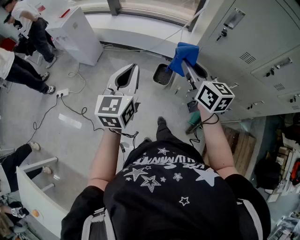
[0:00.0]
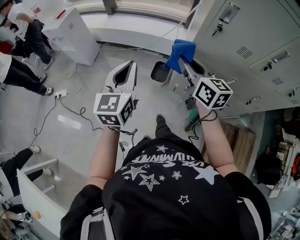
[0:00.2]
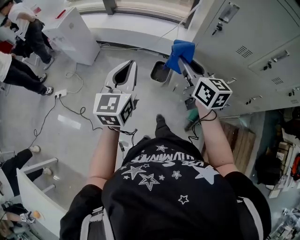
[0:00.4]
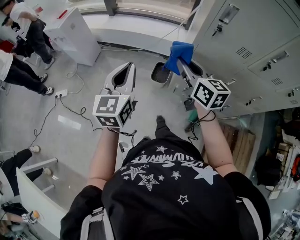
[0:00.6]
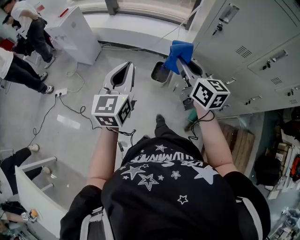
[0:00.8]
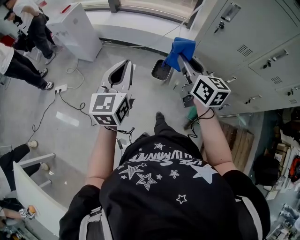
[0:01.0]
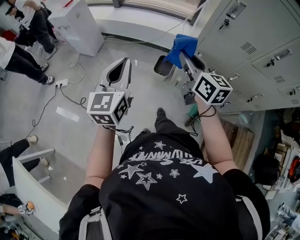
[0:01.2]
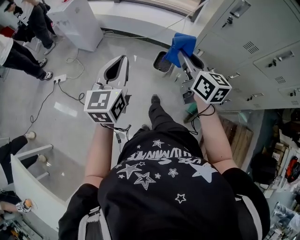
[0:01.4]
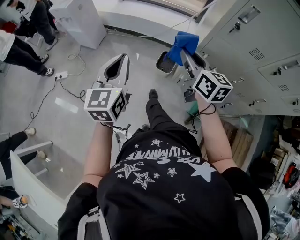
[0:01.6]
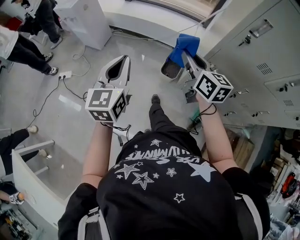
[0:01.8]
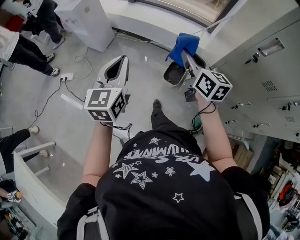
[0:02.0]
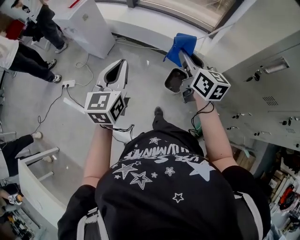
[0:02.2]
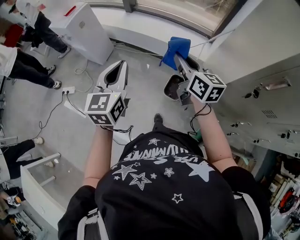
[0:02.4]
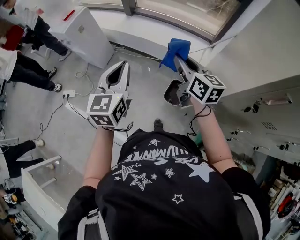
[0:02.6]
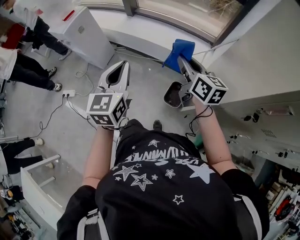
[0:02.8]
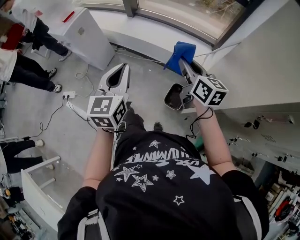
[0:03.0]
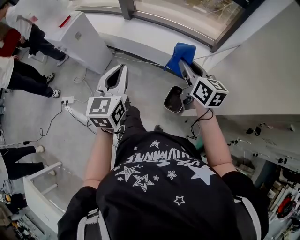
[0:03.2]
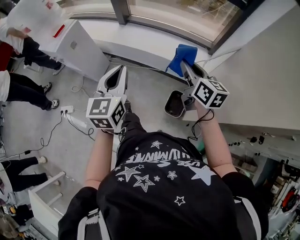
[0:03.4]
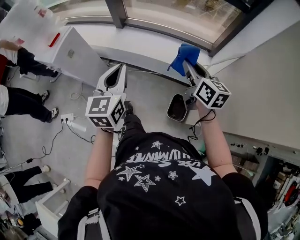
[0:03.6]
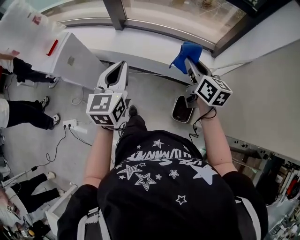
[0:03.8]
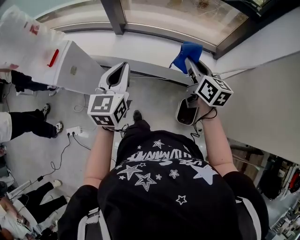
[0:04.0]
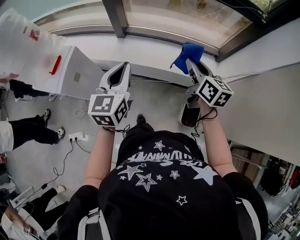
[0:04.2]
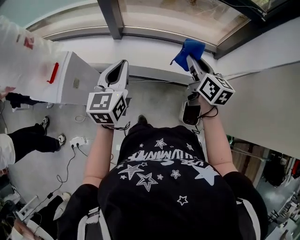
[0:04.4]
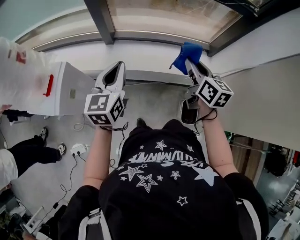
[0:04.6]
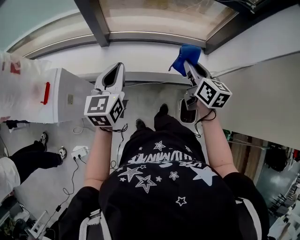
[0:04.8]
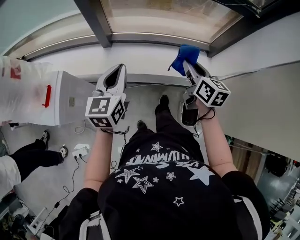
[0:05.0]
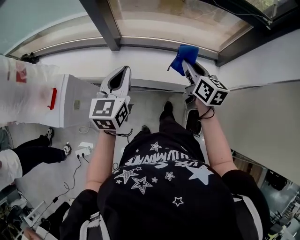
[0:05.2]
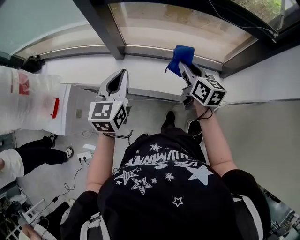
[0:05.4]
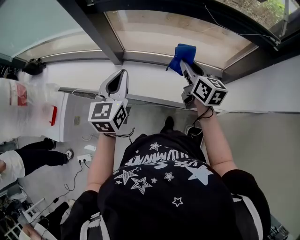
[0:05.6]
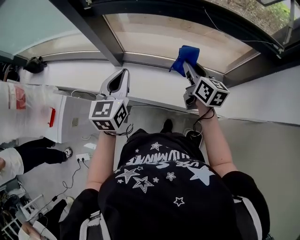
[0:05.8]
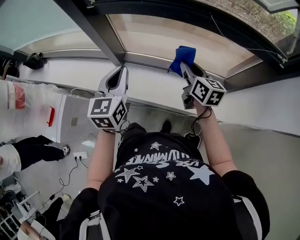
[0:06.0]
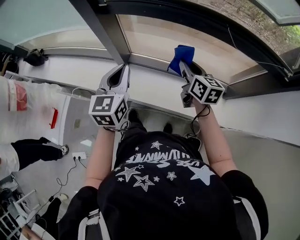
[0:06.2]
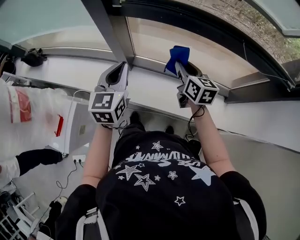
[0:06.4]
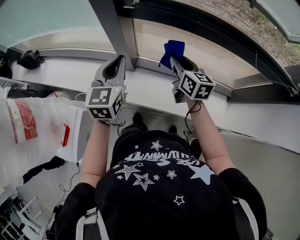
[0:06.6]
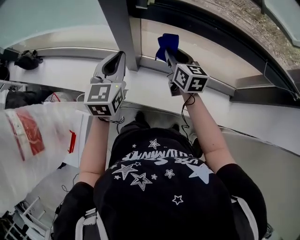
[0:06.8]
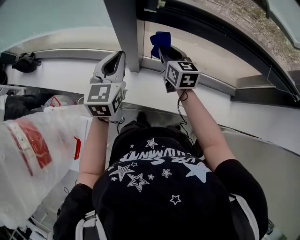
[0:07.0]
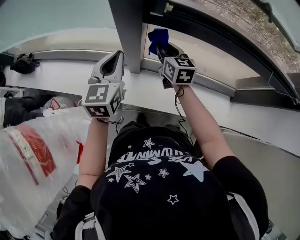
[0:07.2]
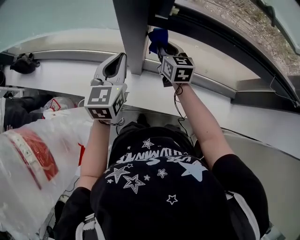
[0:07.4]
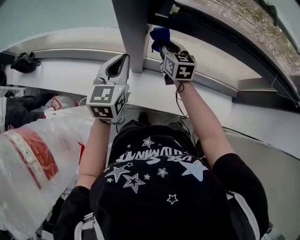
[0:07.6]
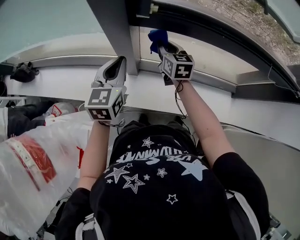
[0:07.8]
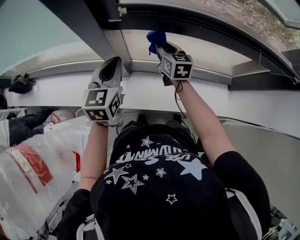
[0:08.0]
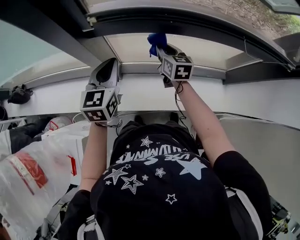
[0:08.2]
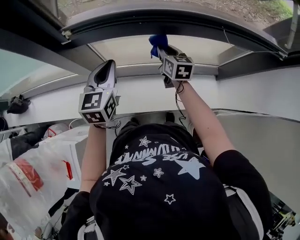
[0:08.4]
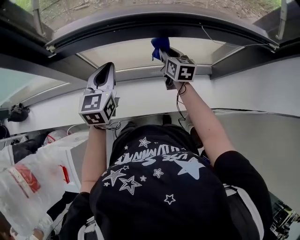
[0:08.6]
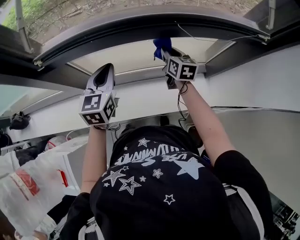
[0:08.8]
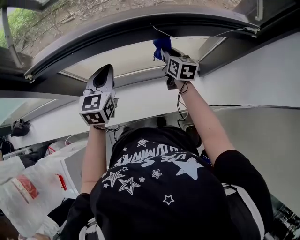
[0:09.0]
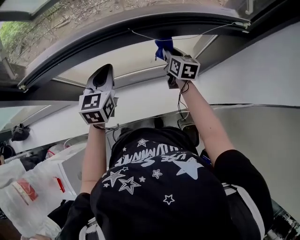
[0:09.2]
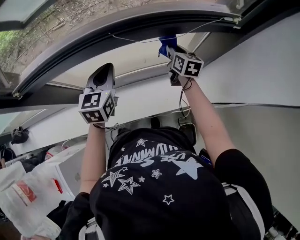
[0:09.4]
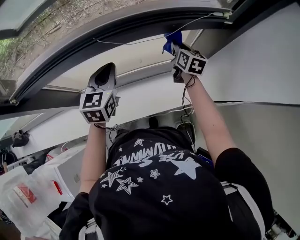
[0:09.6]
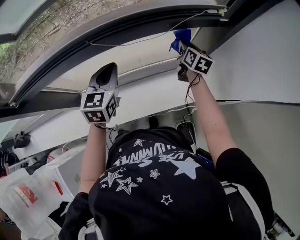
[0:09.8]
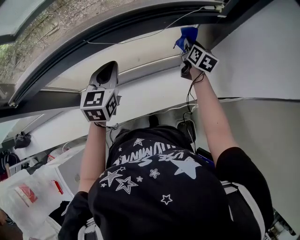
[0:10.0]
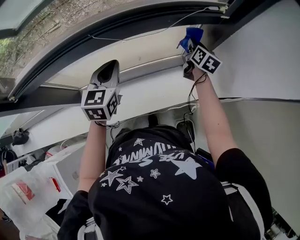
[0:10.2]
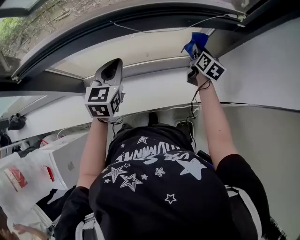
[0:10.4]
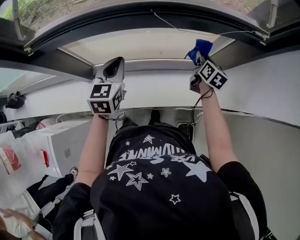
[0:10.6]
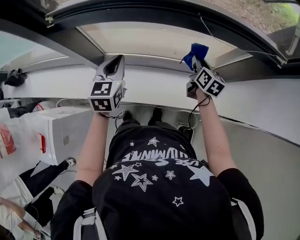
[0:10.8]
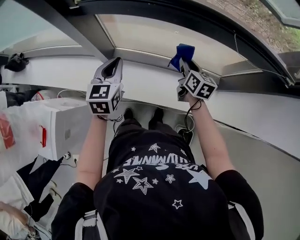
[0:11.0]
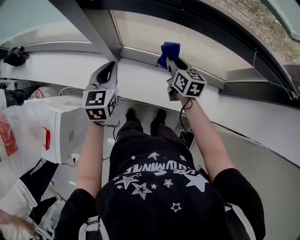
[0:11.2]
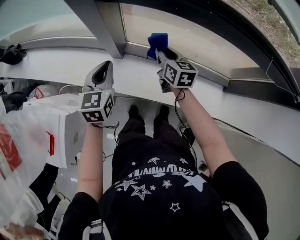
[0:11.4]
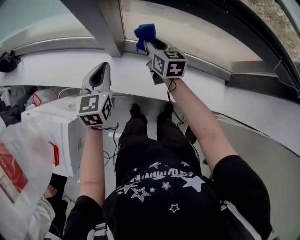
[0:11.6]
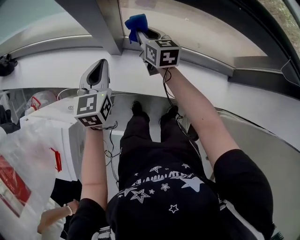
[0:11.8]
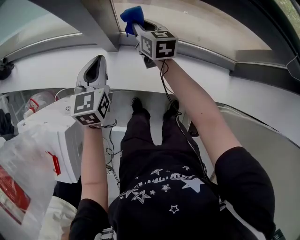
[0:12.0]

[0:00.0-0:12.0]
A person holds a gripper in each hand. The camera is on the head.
0:00.0 to 0:01.6: The left gripper travels to the left by roughly 5 cm.
0:01.6 to 0:03.0: The grippers both shift forward by about 30 cm.
0:03.0 to 0:04.4: The two grippers go roughly 35 cm forward and to the left. The right gripper rotates approximately 20 degrees.
0:04.4 to 0:06.0: The two grippers go some 25 cm forward.
0:06.0 to 0:07.6: The two grippers go roughly 35 cm to the left and forward.
0:07.6 to 0:09.0: The grippers both shift to the right by roughly 40 cm. The right gripper turns by some 30 degrees.
0:09.0 to 0:10.4: The left gripper shifts approximately 15 cm to the right. The right gripper moves to the right, about 25 cm, and swivels approximately 20 degrees.
0:10.4 to 0:12.0: The pair of grippers is taken approximately 50 cm. The right gripper rotates approximately 50 degrees. The left gripper swivels approximately 30 degrees.

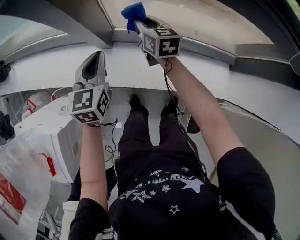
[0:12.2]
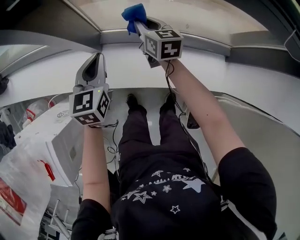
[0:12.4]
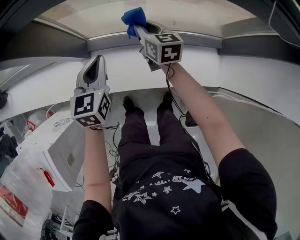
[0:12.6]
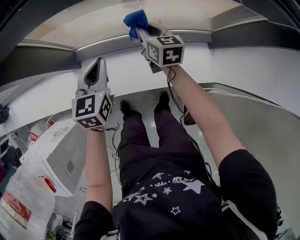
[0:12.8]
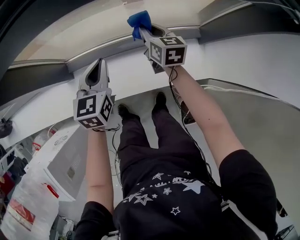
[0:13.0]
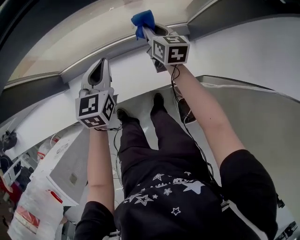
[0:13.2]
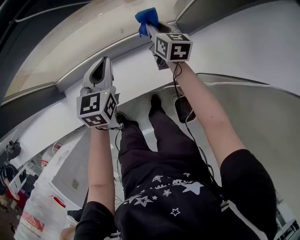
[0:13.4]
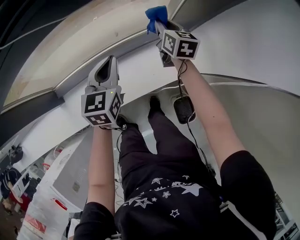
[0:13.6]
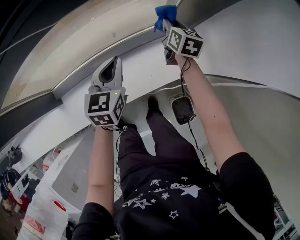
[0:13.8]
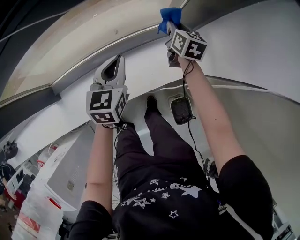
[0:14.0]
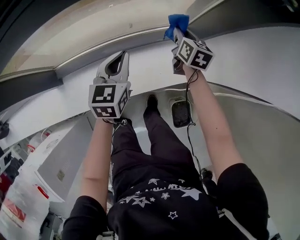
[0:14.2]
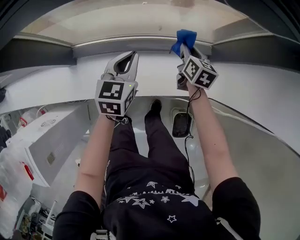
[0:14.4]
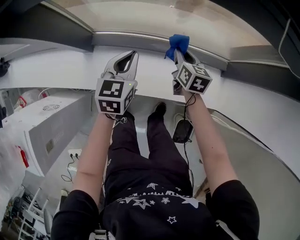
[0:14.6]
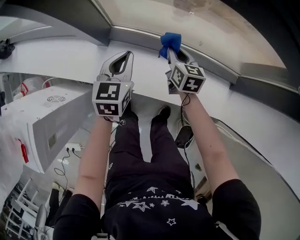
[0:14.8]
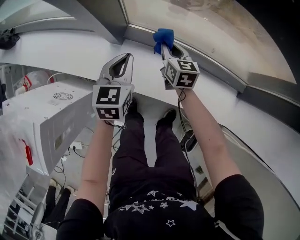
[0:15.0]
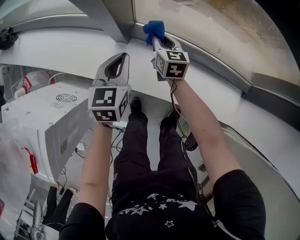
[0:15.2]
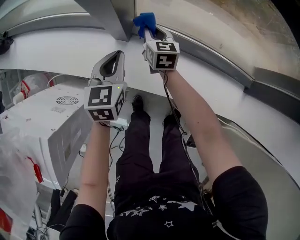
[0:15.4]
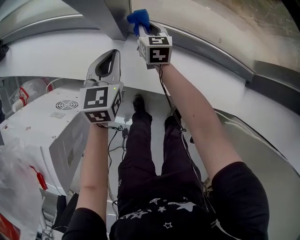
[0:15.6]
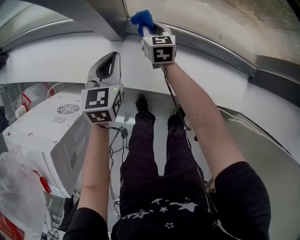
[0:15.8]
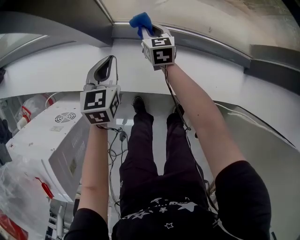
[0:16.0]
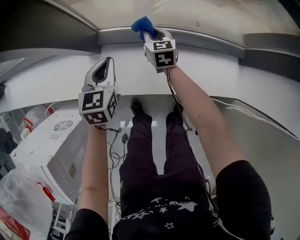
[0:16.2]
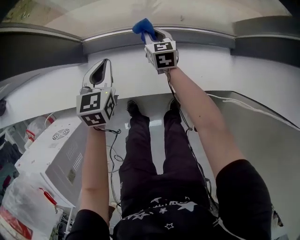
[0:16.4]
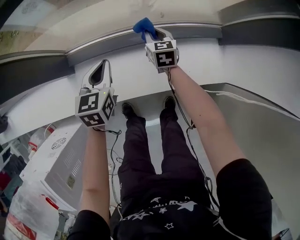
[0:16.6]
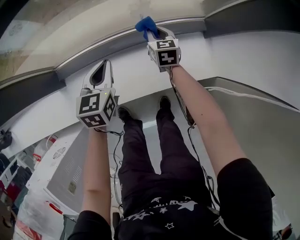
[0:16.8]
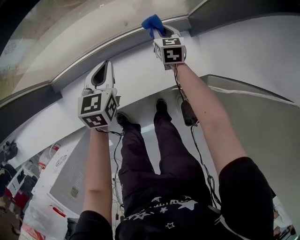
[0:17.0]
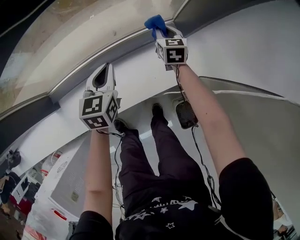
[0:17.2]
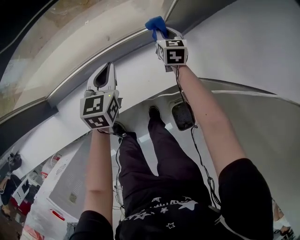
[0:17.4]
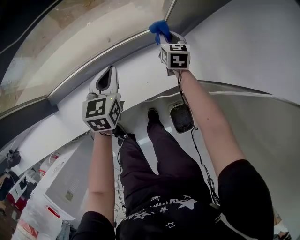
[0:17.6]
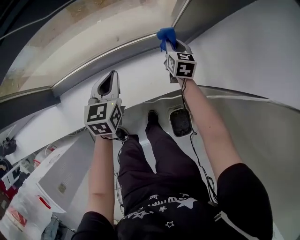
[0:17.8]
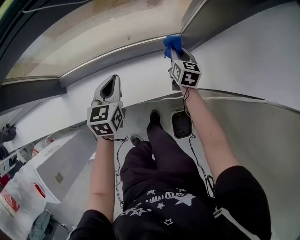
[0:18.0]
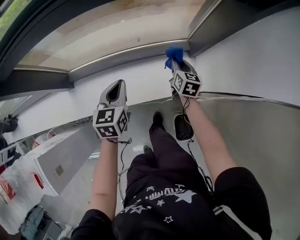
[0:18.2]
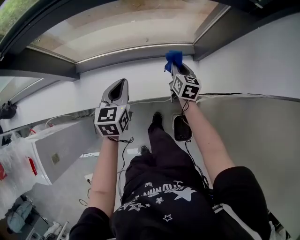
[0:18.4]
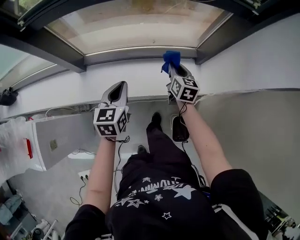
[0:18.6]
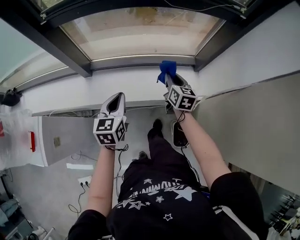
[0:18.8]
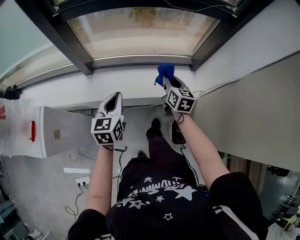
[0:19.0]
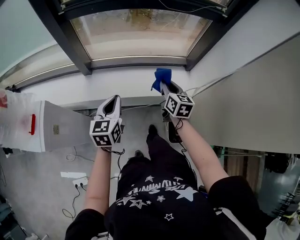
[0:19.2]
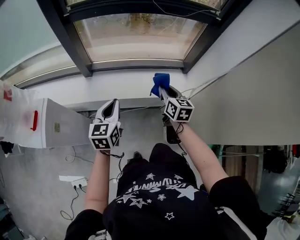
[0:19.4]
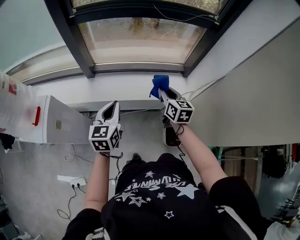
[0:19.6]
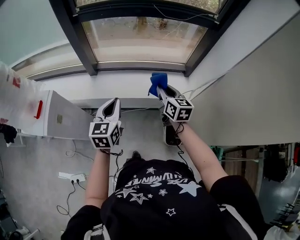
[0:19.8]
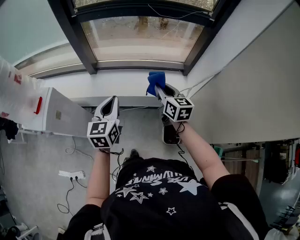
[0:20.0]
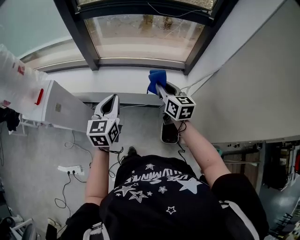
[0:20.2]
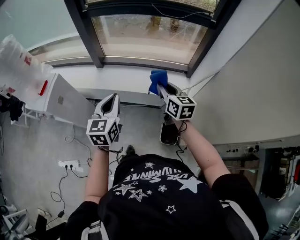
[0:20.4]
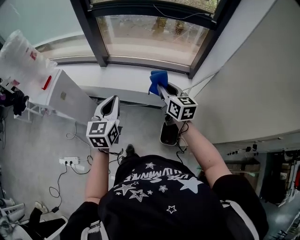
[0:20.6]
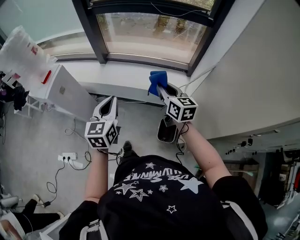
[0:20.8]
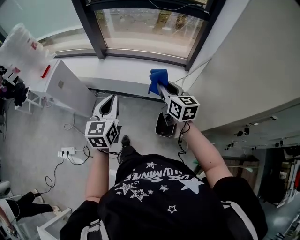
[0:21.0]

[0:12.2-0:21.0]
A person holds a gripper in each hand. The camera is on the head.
0:12.2 to 0:13.6: The pair of grippers is taken some 50 cm. The left gripper turns by approximately 30 degrees. Meanwhile the right gripper swivels approximately 40 degrees.
0:13.6 to 0:15.2: The two grippers travel together, about 50 cm. The left gripper changes its angle by roughly 40 degrees. The right gripper swivels some 40 degrees.
0:15.2 to 0:16.6: The grippers both shift to the right by some 25 cm. The left gripper changes its angle by some 20 degrees, while the right gripper changes its angle by some 20 degrees.
0:16.6 to 0:18.0: The two grippers go approximately 25 cm to the right. The right gripper turns by some 20 degrees.
0:18.0 to 0:19.6: The grippers both shift backward, upward and to the left by approximately 50 cm. The right gripper swivels roughly 20 degrees.
0:19.6 to 0:21.0: Both grippers travel together backward and to the right, about 20 cm. The right gripper changes its angle by about 20 degrees.

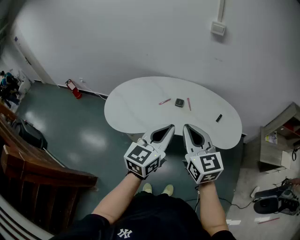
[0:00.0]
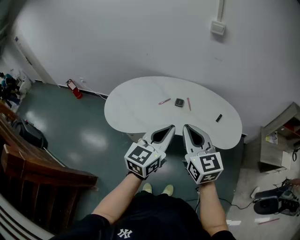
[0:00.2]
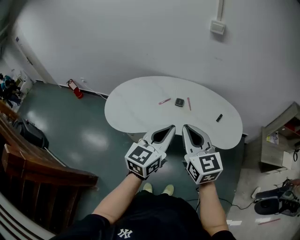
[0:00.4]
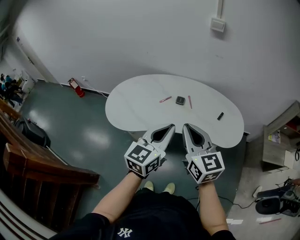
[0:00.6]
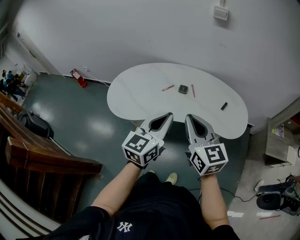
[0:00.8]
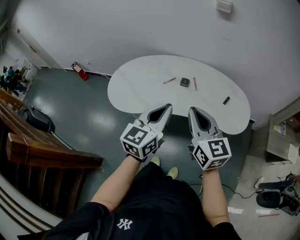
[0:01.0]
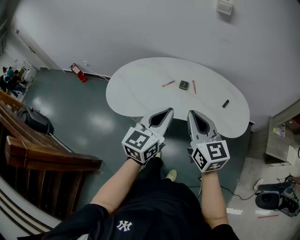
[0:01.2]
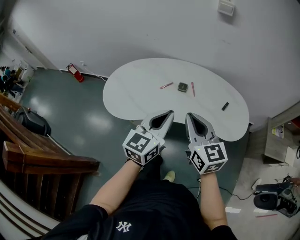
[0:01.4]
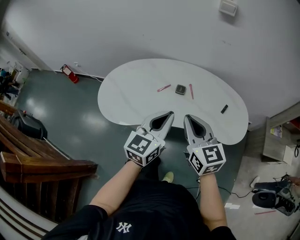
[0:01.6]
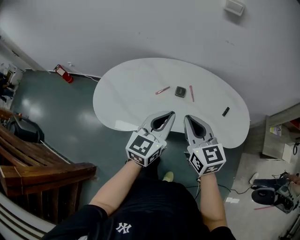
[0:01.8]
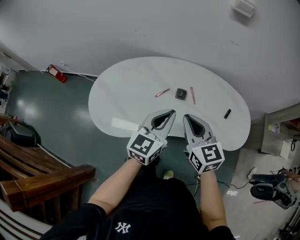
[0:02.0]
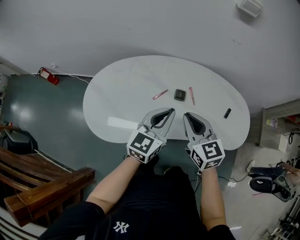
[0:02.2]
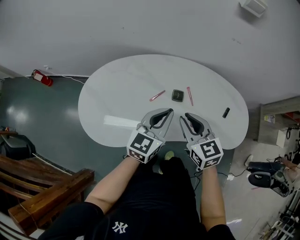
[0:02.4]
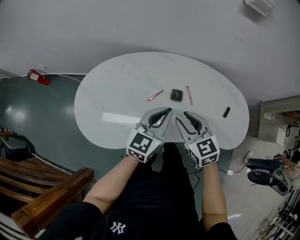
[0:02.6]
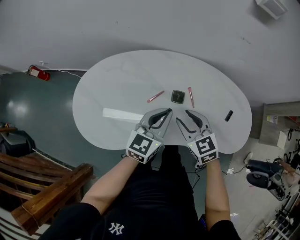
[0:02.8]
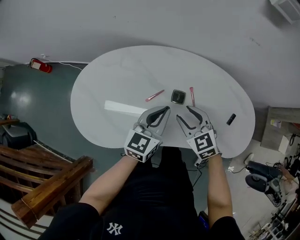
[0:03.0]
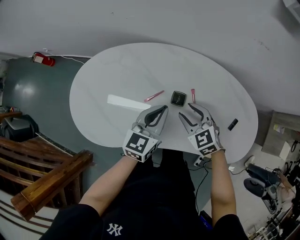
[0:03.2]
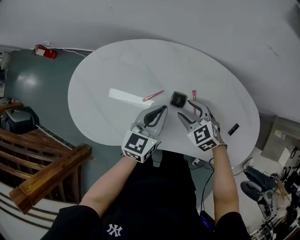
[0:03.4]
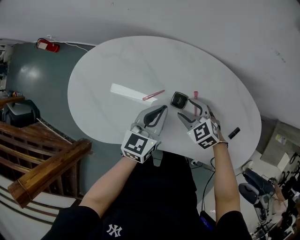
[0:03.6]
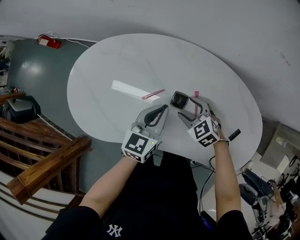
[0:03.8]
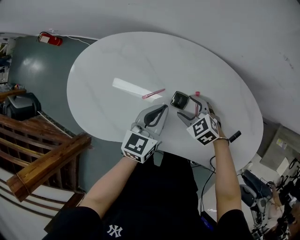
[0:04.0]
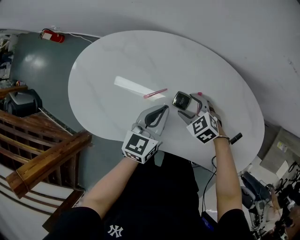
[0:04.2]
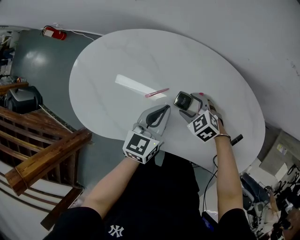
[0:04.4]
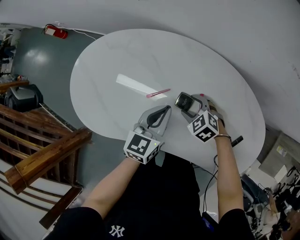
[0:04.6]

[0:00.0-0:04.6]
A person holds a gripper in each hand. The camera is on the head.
0:00.0 to 0:01.6: The two grippers go approximately 10 cm forward and downward.
0:01.6 to 0:03.0: The grippers both shift forward and downward by some 30 cm. The right gripper turns by roughly 30 degrees, and opens its fingers.
0:03.0 to 0:04.6: The left gripper goes roughly 10 cm downward. Meanwhile the right gripper is displaced downward by approximately 15 cm, and changes its angle by about 30 degrees.
